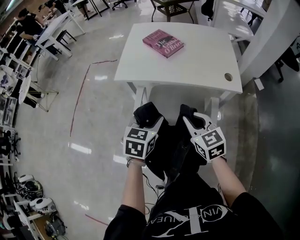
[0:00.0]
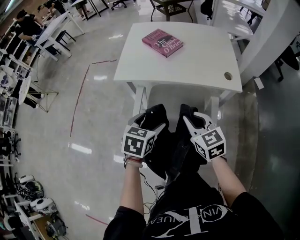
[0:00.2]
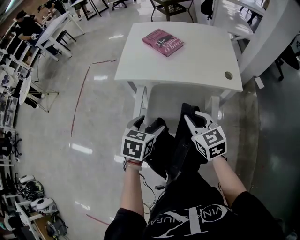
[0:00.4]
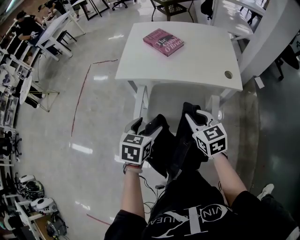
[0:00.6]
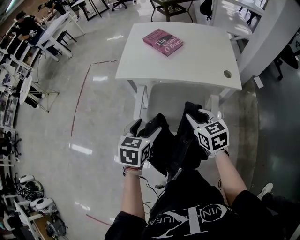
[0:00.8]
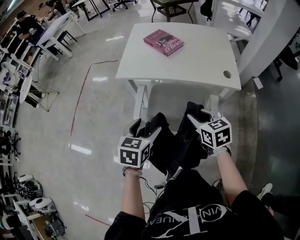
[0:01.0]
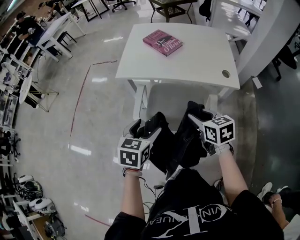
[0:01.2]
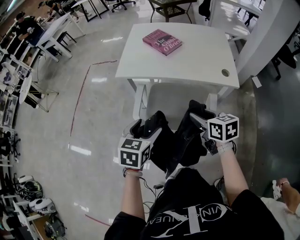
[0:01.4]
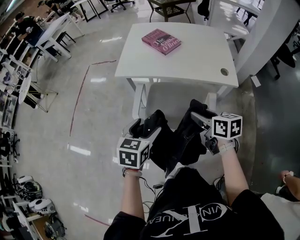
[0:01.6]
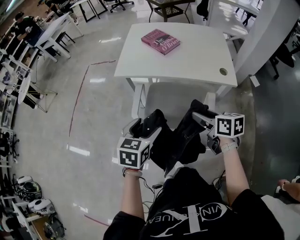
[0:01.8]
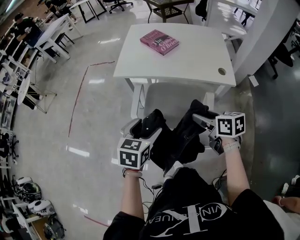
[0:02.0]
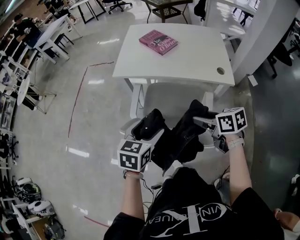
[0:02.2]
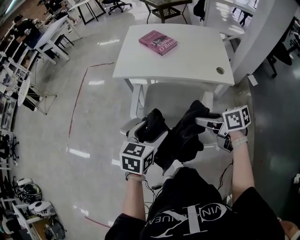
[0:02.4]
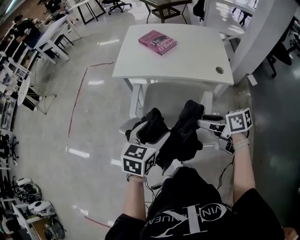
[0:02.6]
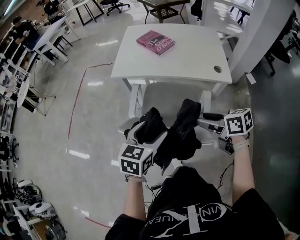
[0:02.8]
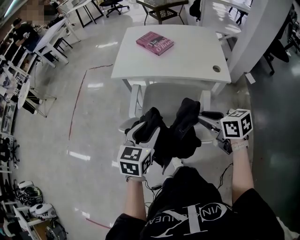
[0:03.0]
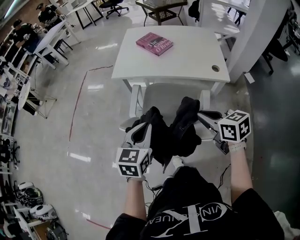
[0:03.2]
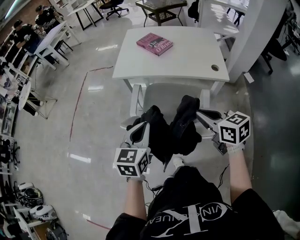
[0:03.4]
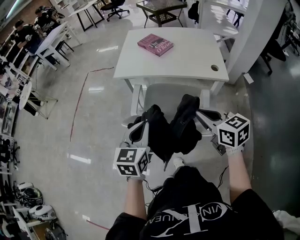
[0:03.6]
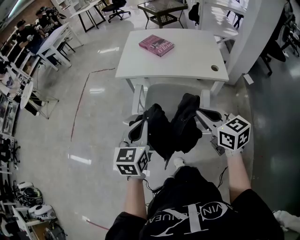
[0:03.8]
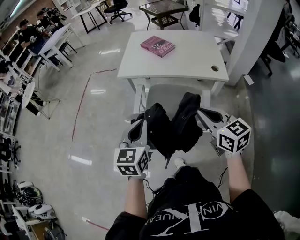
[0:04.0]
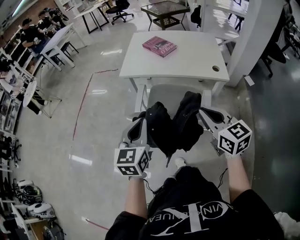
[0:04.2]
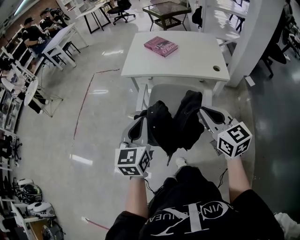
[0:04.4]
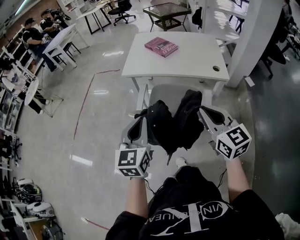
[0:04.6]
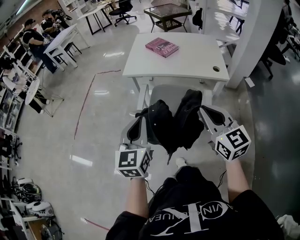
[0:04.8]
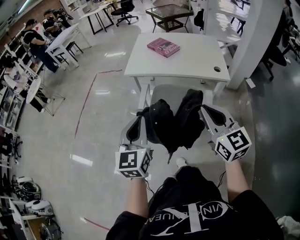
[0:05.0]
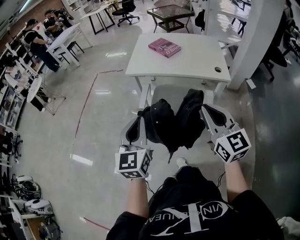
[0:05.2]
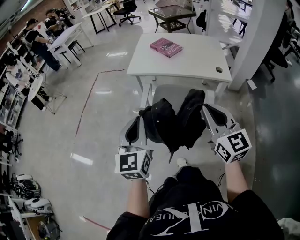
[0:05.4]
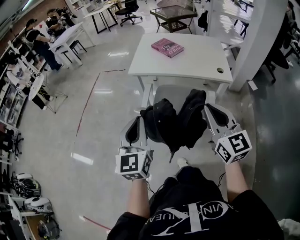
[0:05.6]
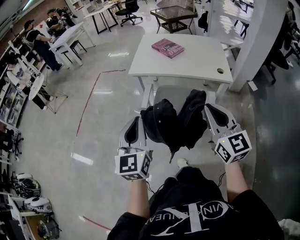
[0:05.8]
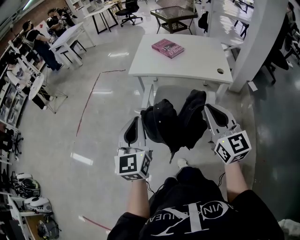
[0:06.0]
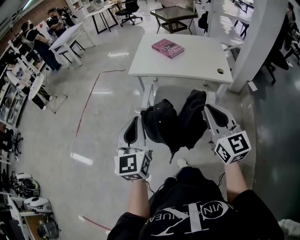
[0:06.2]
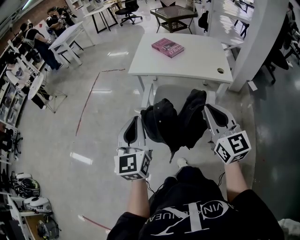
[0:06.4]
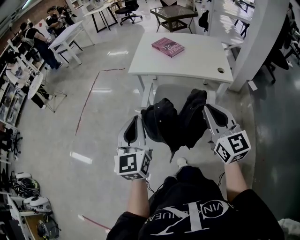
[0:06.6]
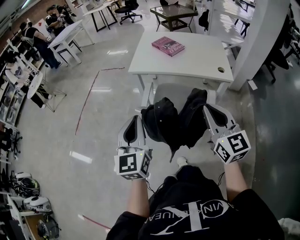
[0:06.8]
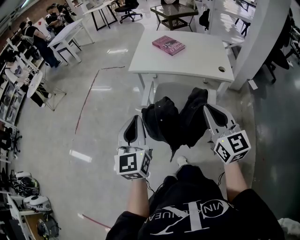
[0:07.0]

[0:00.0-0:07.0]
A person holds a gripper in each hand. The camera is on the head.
0.0 to 1.4 s: The right gripper ends up roughly 5 cm from where it was, swivels about 20 degrees, and opens its fingers. The left gripper travels backward by some 5 cm, and opens its fingers.
1.4 to 2.8 s: The grippers both shift backward by about 5 cm.
2.8 to 4.2 s: The right gripper moves upward and backward, approximately 10 cm, turns by some 40 degrees, and closes its fingers; the left gripper moves to the left and upward, about 10 cm, swivels approximately 20 degrees, and closes its fingers.
4.2 to 5.6 s: The right gripper heads upward, covering approximately 5 cm. Meanwhile the left gripper ends up roughly 10 cm from where it was.
5.6 to 7.0 s: The grippers make only small movements.

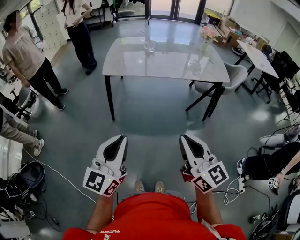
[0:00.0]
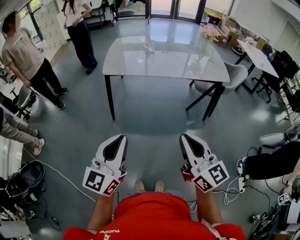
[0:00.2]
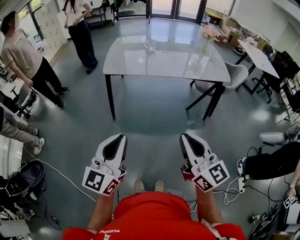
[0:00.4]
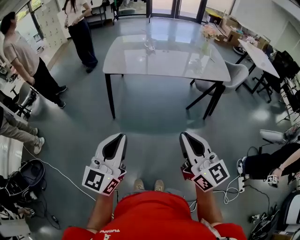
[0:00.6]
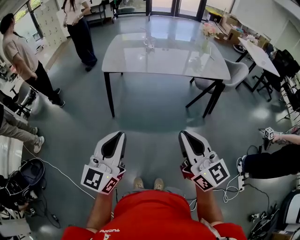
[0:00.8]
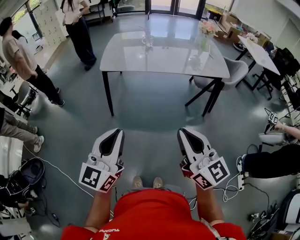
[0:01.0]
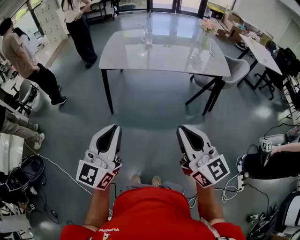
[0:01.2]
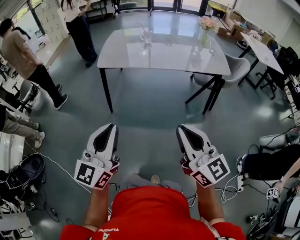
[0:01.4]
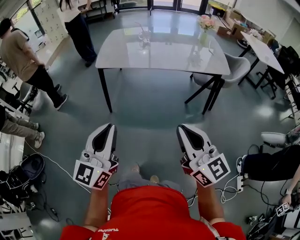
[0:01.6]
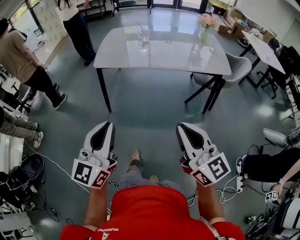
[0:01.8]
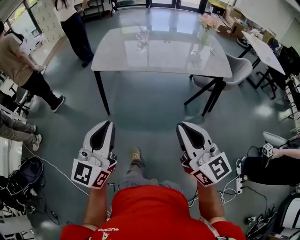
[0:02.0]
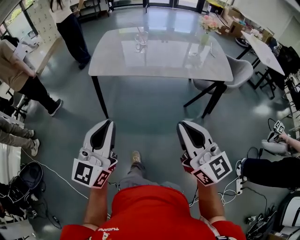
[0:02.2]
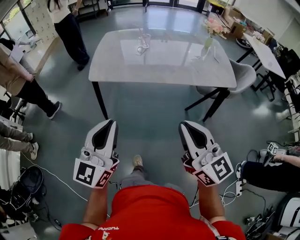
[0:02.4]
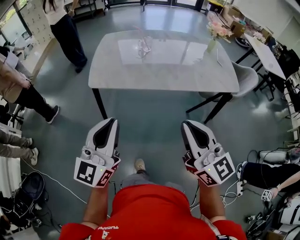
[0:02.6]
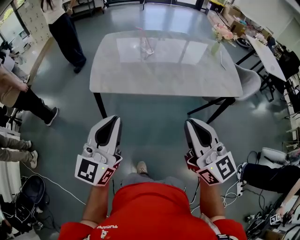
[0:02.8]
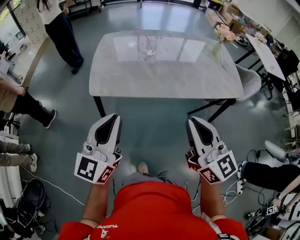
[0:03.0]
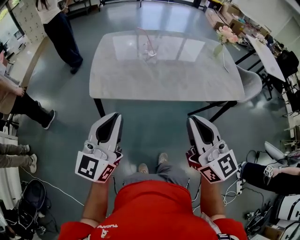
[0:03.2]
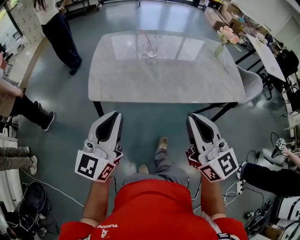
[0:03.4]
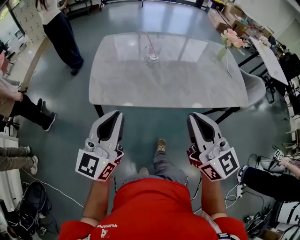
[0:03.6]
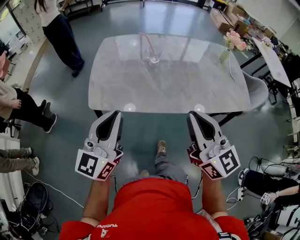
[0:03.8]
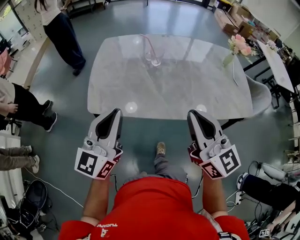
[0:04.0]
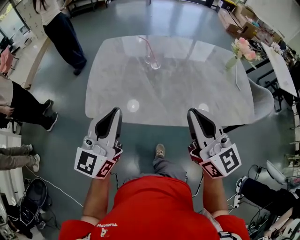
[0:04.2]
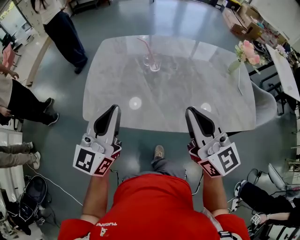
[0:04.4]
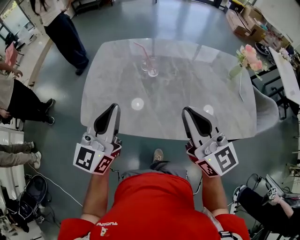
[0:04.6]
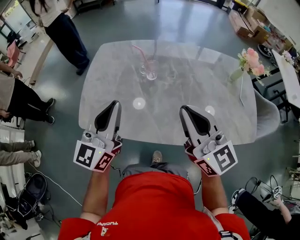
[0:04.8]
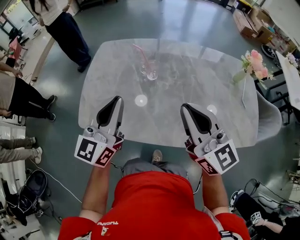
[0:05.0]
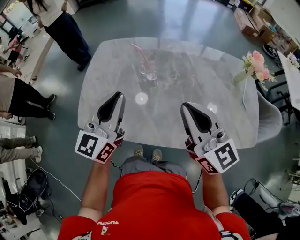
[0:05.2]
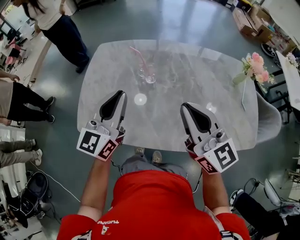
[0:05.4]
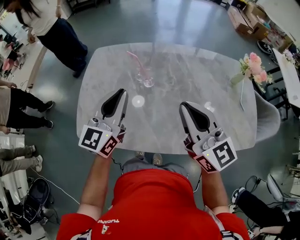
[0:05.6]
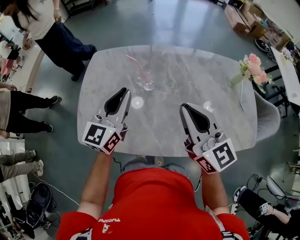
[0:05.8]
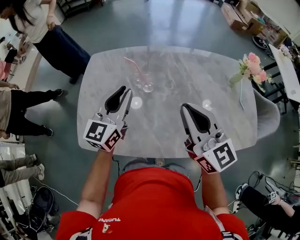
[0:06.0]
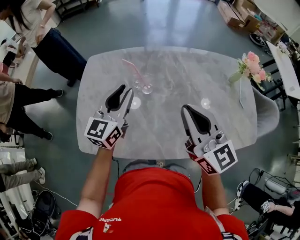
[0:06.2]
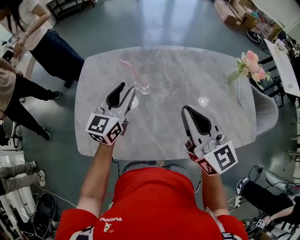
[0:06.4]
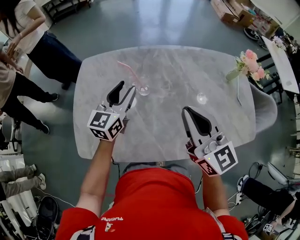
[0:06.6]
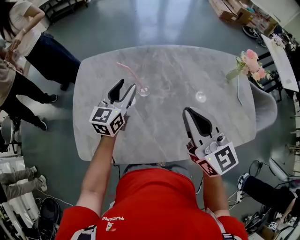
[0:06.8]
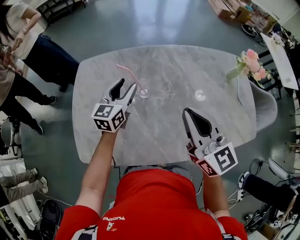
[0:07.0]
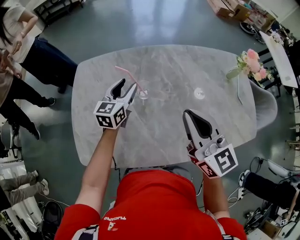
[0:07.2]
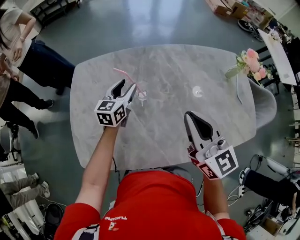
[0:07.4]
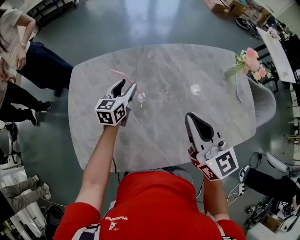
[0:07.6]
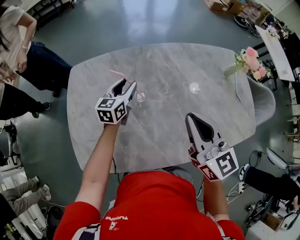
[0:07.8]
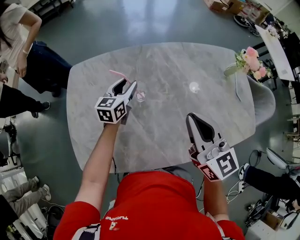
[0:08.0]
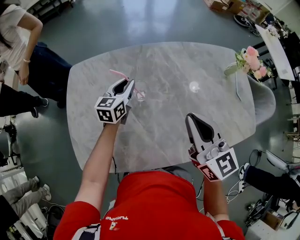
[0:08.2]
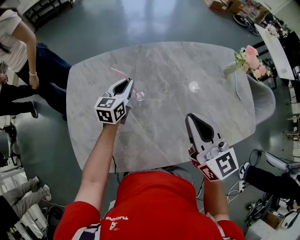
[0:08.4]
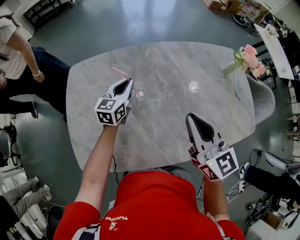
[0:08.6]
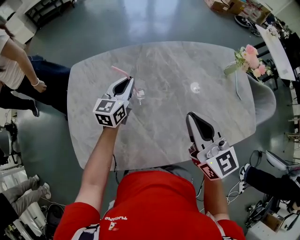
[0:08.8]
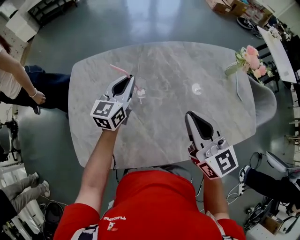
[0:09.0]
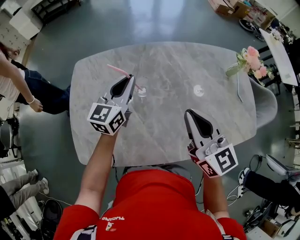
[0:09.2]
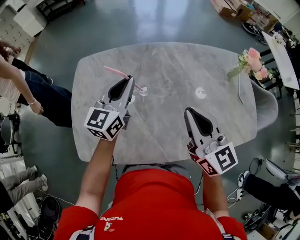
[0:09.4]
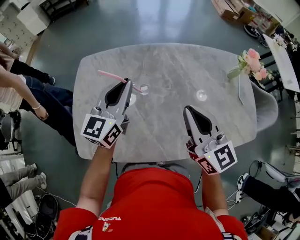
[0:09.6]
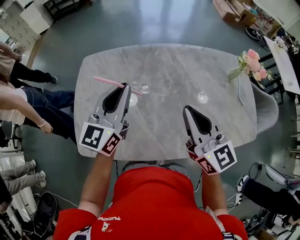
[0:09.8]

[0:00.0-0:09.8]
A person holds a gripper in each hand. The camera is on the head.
0.0 to 1.4 s: The right gripper travels to the right by some 5 cm.
1.4 to 2.8 s: Both grippers travel together forward, about 30 cm.
2.8 to 4.2 s: Both grippers travel together forward, approximately 25 cm.
4.2 to 5.6 s: The right gripper heads forward, covering approximately 15 cm. The left gripper travels forward and to the right by about 20 cm.
5.6 to 7.0 s: The left gripper goes some 20 cm forward and downward, and opens its fingers. Meanwhile the right gripper moves forward, about 5 cm.
7.0 to 8.4 s: The left gripper moves downward and forward, roughly 10 cm, and closes its fingers.
8.4 to 9.8 s: The left gripper travels upward and backward by roughly 25 cm, and turns by approximately 20 degrees.

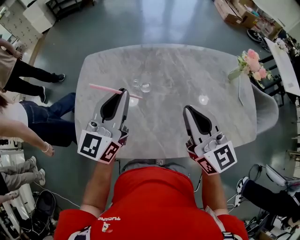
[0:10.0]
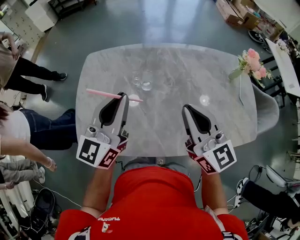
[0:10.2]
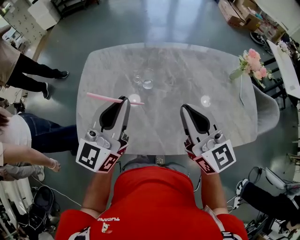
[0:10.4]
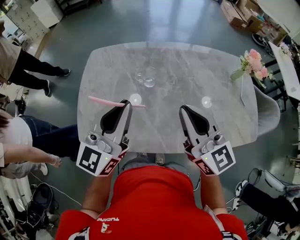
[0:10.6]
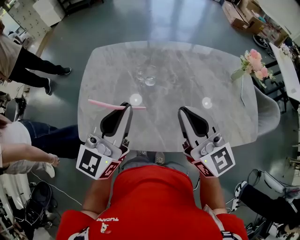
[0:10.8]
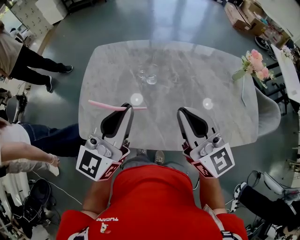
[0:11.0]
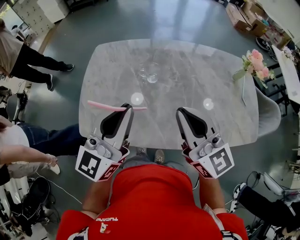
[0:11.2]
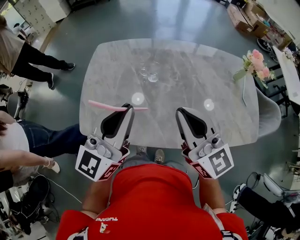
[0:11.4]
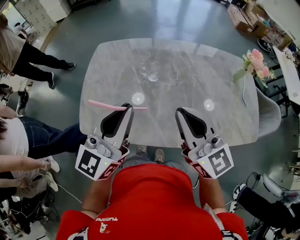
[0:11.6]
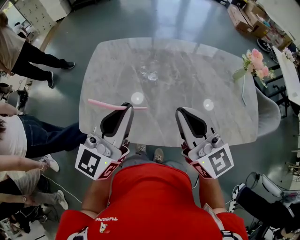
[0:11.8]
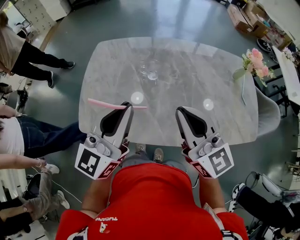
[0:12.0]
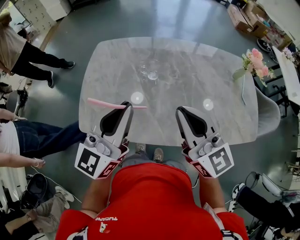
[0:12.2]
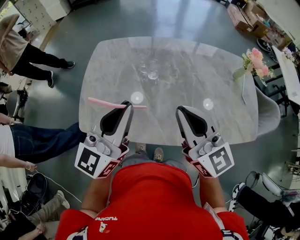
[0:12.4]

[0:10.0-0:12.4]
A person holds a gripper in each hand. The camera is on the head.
10.0 to 11.2 s: The right gripper moves backward, roughly 5 cm, while the left gripper moves backward, approximately 10 cm.
11.2 to 12.4 s: The two grippers keep their place.

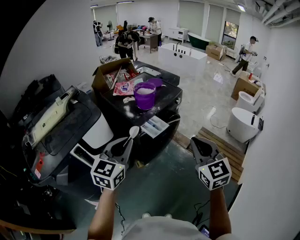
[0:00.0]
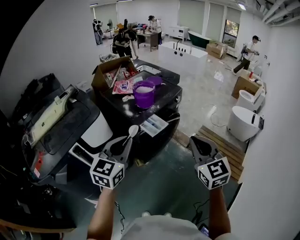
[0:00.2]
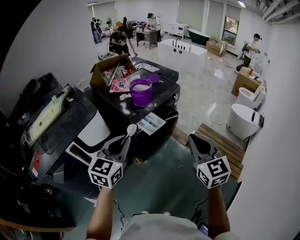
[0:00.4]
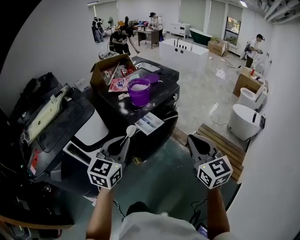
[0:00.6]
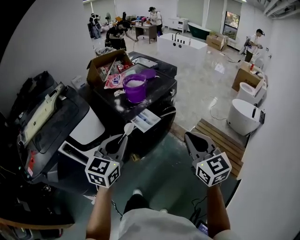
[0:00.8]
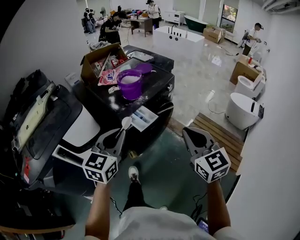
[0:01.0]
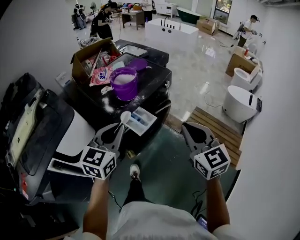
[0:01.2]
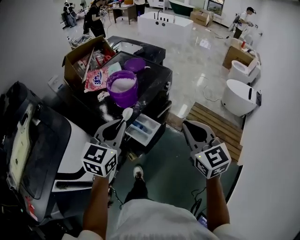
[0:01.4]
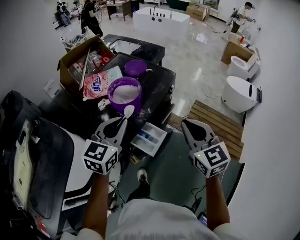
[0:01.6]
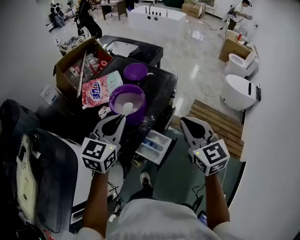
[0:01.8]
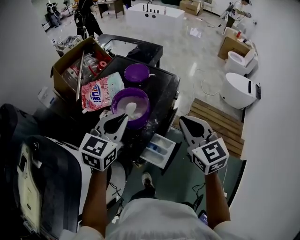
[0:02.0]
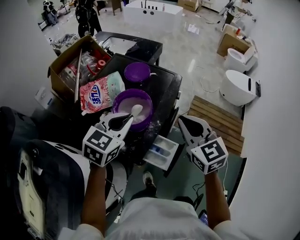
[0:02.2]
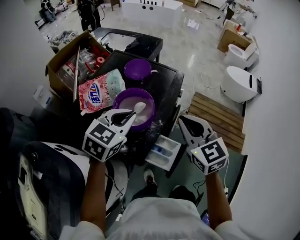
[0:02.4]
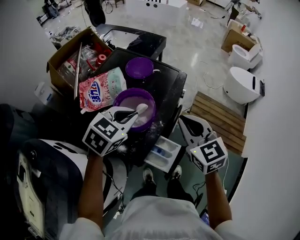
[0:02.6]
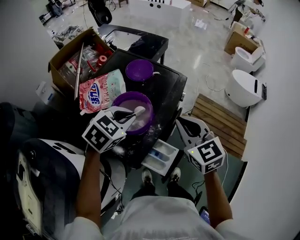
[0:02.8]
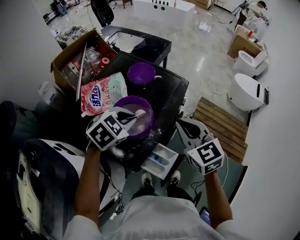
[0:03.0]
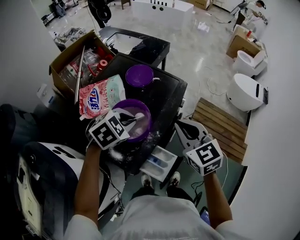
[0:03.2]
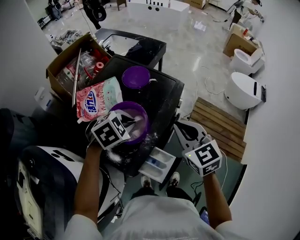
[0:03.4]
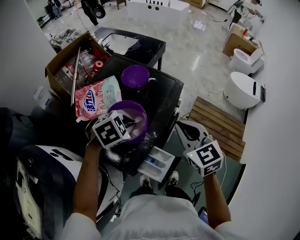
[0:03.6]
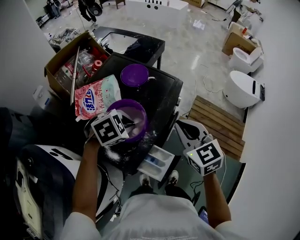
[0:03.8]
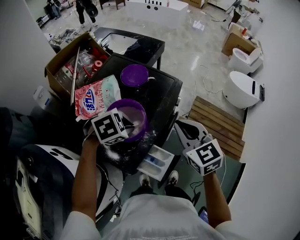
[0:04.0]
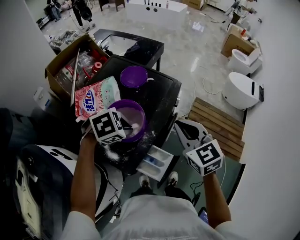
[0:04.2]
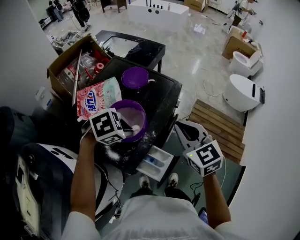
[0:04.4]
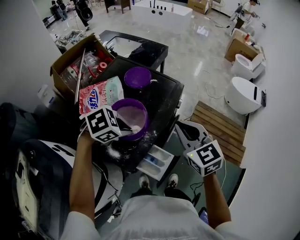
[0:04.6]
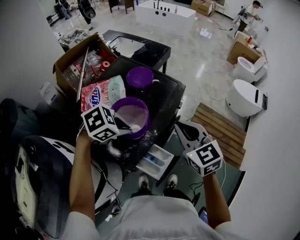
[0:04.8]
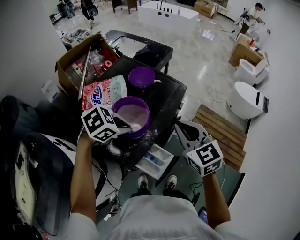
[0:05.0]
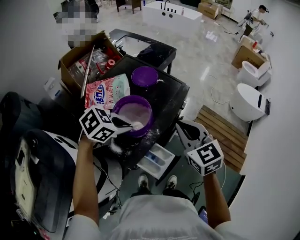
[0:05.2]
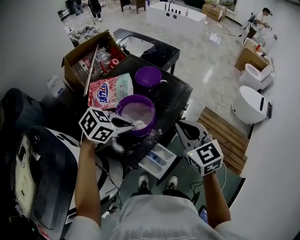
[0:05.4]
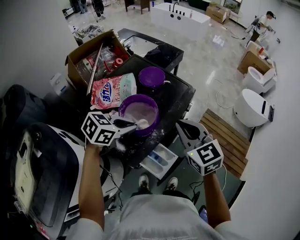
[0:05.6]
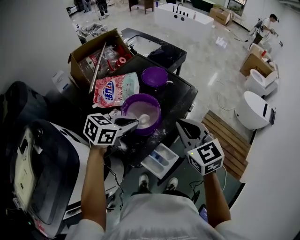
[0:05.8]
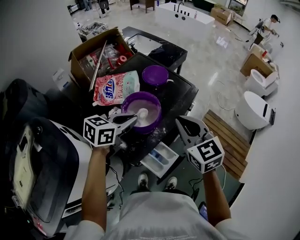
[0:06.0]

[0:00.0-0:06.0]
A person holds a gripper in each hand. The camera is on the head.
0.0 to 1.6 s: Both grippers travel together forward, about 30 cm.
1.6 to 3.0 s: The left gripper moves forward and downward, some 20 cm, and points its fingers some 40 degrees further downward. Meanwhile the right gripper shifts roughly 20 cm forward and to the left.
3.0 to 4.4 s: The left gripper changes place by about 5 cm, and swivels roughly 30 degrees.
4.4 to 6.0 s: The right gripper moves roughly 5 cm. The left gripper moves approximately 5 cm, and angles its fingers upward, by roughly 40 degrees.
